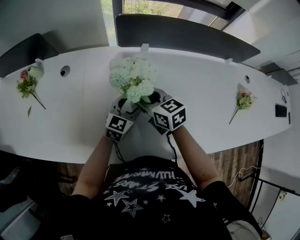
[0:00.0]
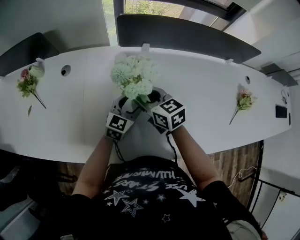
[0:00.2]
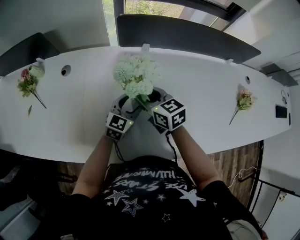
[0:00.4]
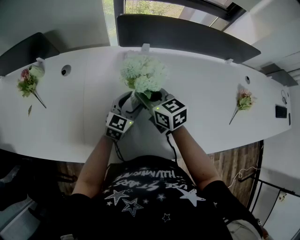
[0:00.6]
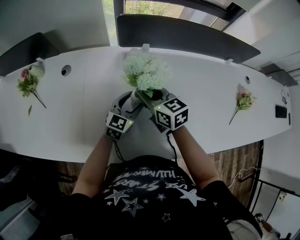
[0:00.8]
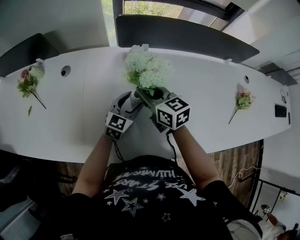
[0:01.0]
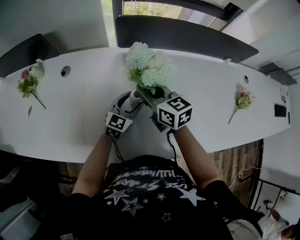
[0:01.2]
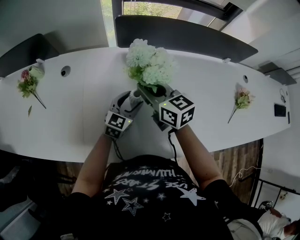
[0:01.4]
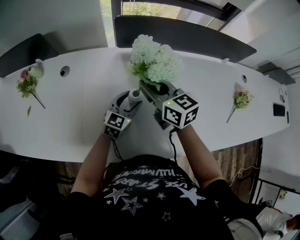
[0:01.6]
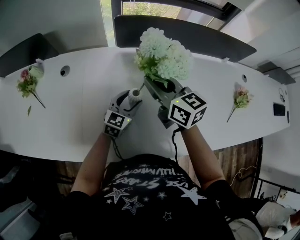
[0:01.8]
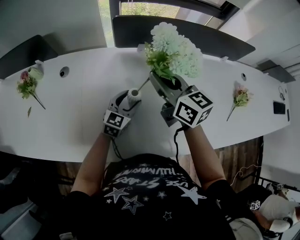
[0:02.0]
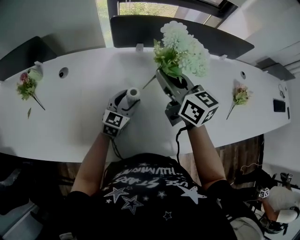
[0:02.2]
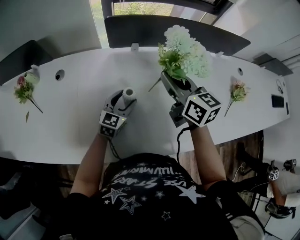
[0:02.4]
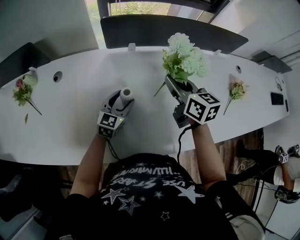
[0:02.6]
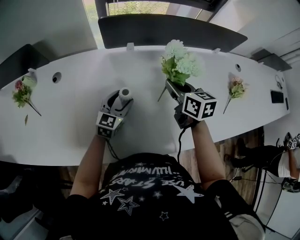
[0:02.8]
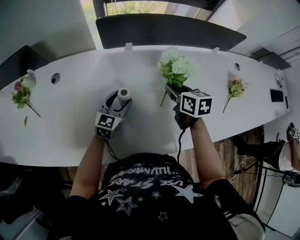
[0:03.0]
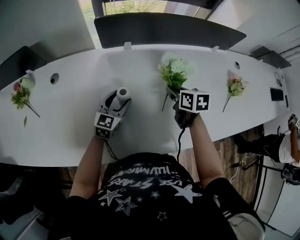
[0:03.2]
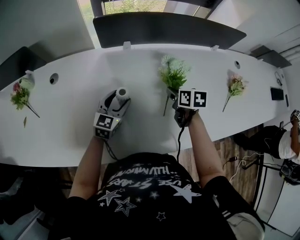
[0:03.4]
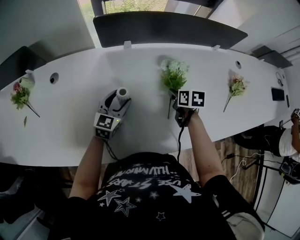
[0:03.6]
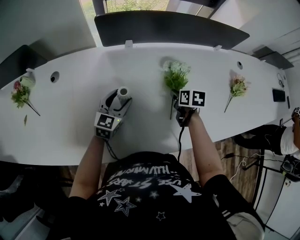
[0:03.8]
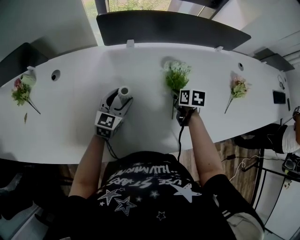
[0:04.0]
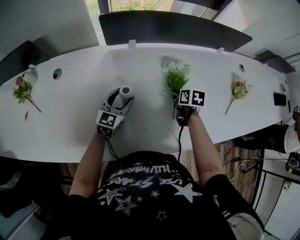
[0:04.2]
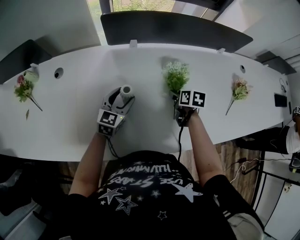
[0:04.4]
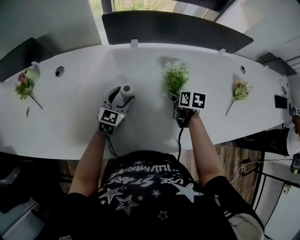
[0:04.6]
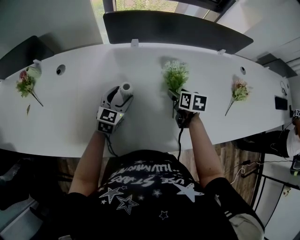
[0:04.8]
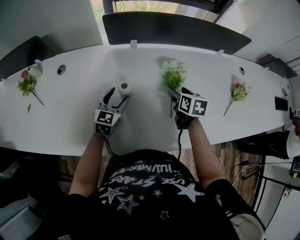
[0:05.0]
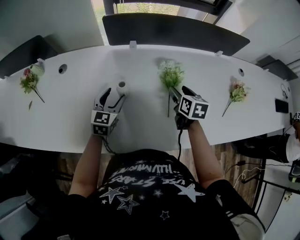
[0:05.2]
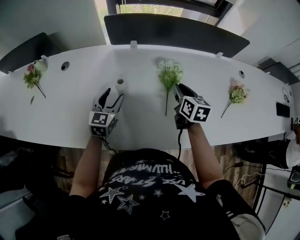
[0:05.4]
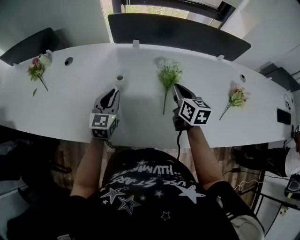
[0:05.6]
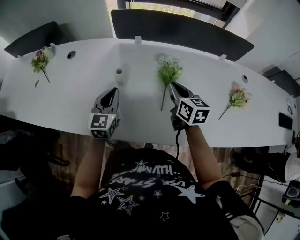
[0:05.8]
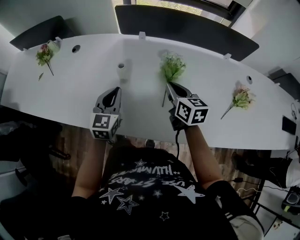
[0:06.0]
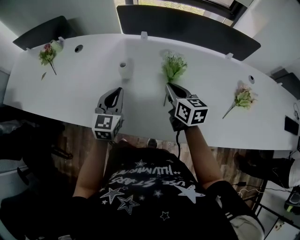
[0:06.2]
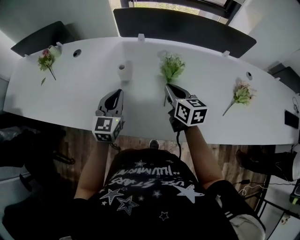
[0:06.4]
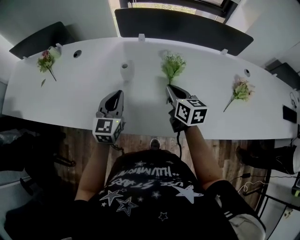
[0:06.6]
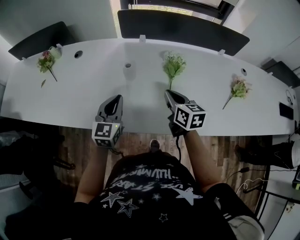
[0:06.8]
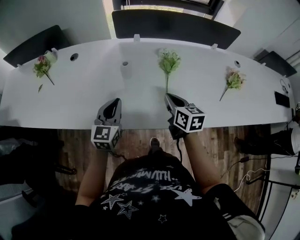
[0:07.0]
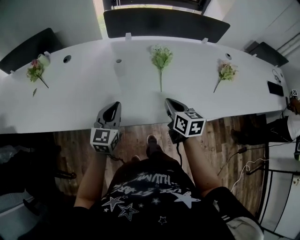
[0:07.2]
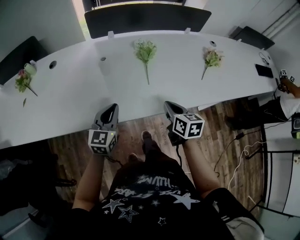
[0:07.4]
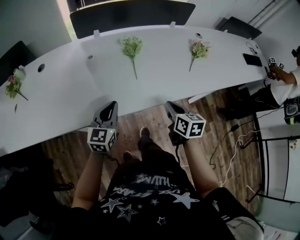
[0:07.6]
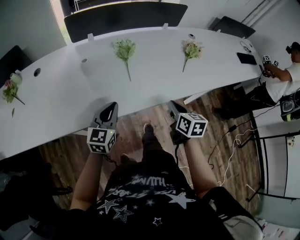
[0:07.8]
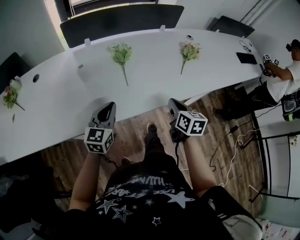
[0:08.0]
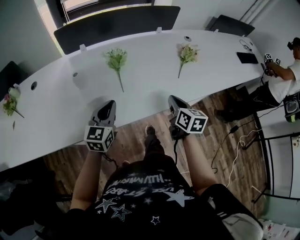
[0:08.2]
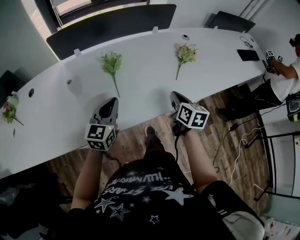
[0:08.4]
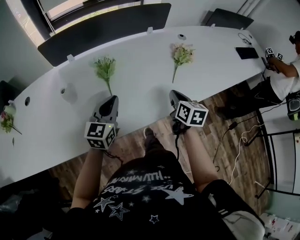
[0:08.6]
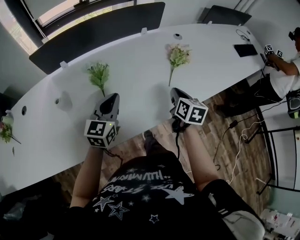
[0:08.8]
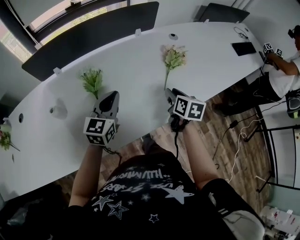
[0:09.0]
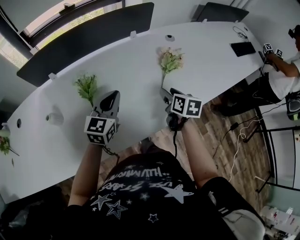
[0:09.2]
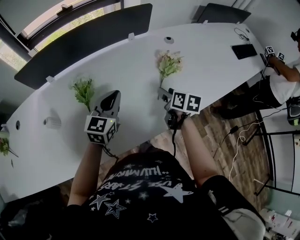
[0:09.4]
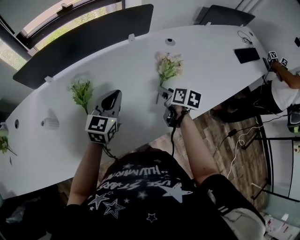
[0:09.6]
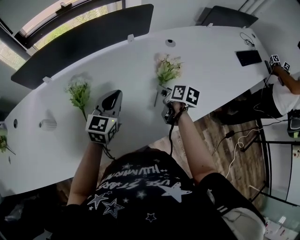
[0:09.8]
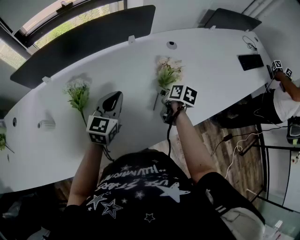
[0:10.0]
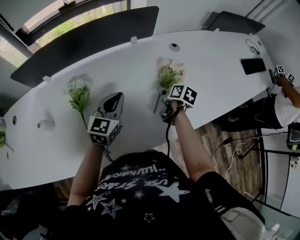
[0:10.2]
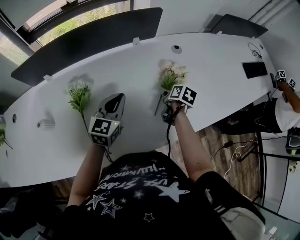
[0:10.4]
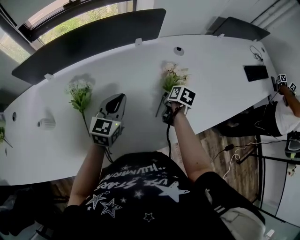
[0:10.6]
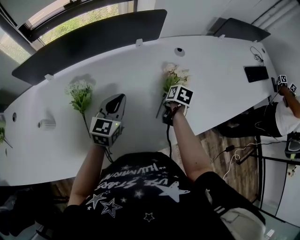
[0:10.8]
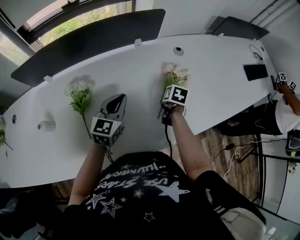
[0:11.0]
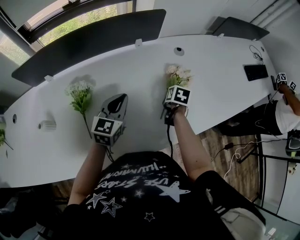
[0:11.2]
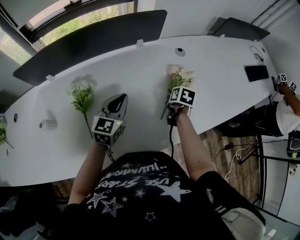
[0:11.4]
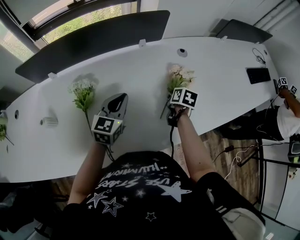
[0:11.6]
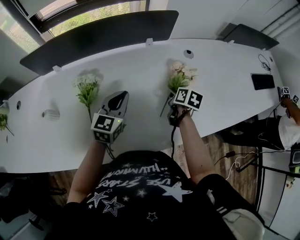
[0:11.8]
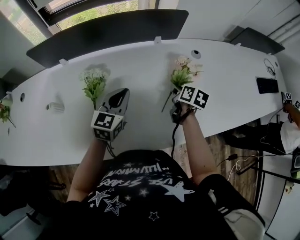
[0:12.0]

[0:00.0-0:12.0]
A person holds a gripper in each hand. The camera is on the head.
0.0 to 1.6 s: The right gripper heads upward, covering about 10 cm, and closes its fingers.
1.6 to 3.0 s: The right gripper goes some 20 cm to the right and downward, and changes its angle by some 30 degrees.
3.0 to 4.4 s: The right gripper goes roughly 15 cm downward and to the right, rotates about 20 degrees, and opens.
4.4 to 6.0 s: The left gripper travels backward and upward by approximately 15 cm, changes its angle by approximately 30 degrees, and closes. The right gripper goes about 15 cm upward and backward, tilts its fingers approximately 30 degrees upward, and closes up.
6.0 to 7.6 s: The left gripper changes place by roughly 15 cm, and rotates about 30 degrees. Meanwhile the right gripper ends up some 25 cm from where it was, and changes its angle by roughly 30 degrees.
7.6 to 9.0 s: The grippers both shift forward and to the right by some 30 cm. The right gripper opens up.
9.0 to 10.4 s: The right gripper shifts approximately 20 cm forward and downward, turns by roughly 20 degrees, and opens. The left gripper shifts some 15 cm forward and to the right.
10.4 to 12.0 s: The right gripper heads to the left and upward, covering approximately 5 cm, and closes.

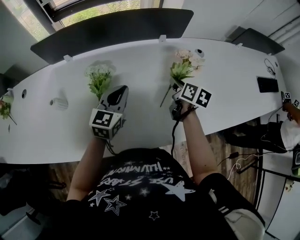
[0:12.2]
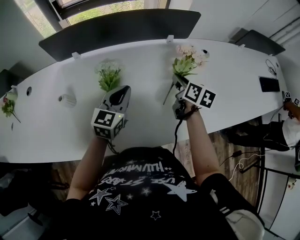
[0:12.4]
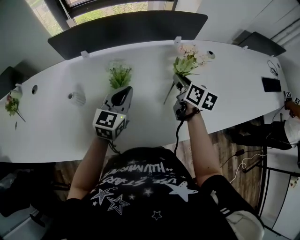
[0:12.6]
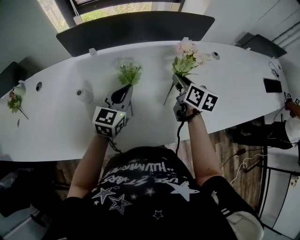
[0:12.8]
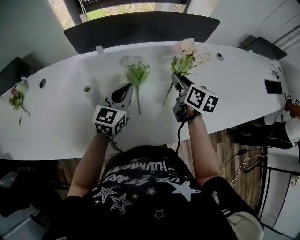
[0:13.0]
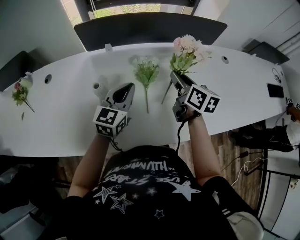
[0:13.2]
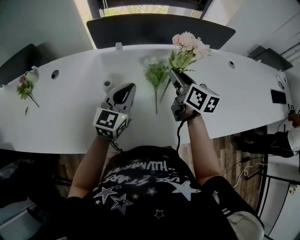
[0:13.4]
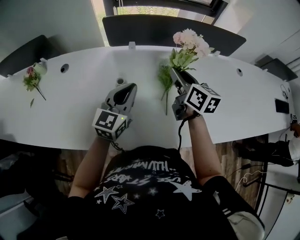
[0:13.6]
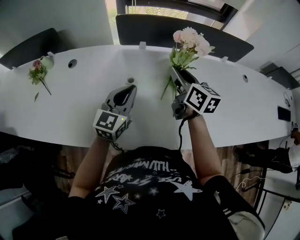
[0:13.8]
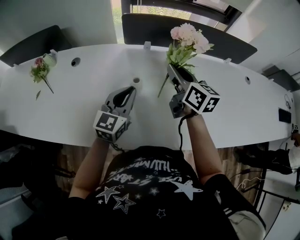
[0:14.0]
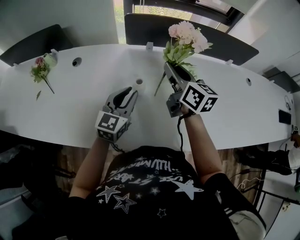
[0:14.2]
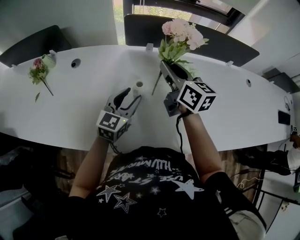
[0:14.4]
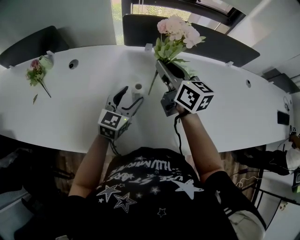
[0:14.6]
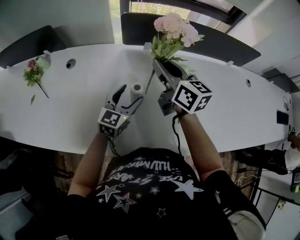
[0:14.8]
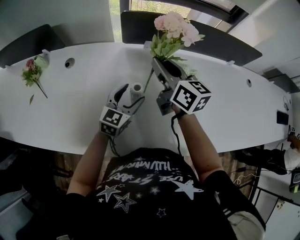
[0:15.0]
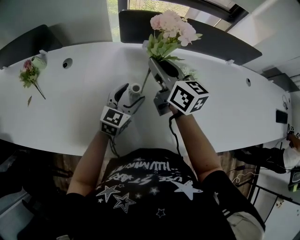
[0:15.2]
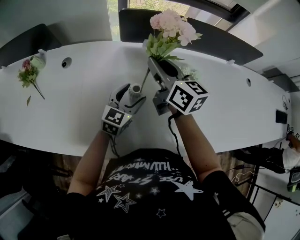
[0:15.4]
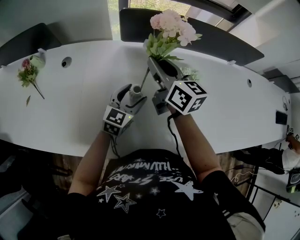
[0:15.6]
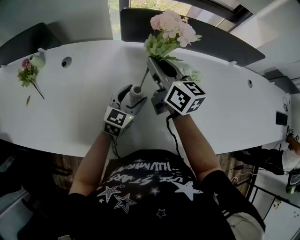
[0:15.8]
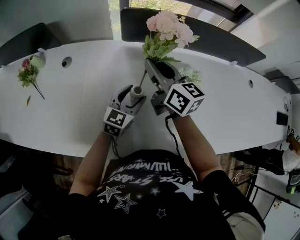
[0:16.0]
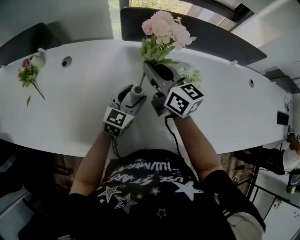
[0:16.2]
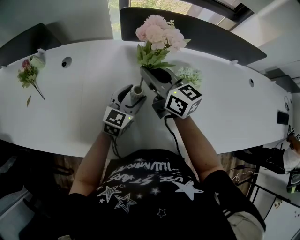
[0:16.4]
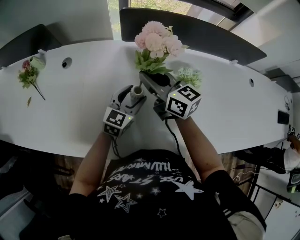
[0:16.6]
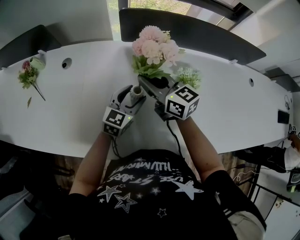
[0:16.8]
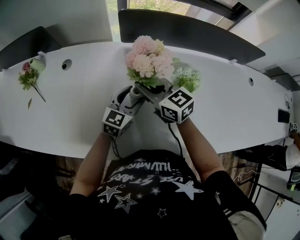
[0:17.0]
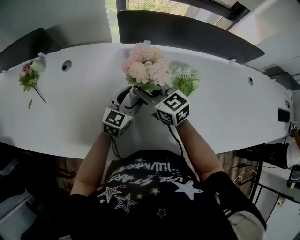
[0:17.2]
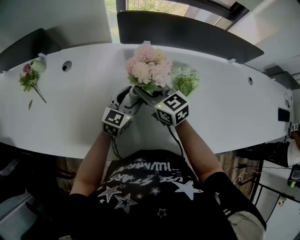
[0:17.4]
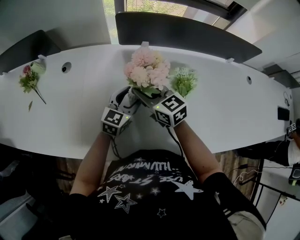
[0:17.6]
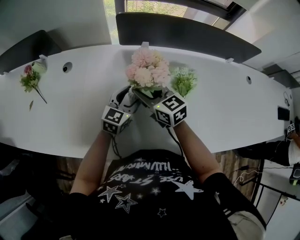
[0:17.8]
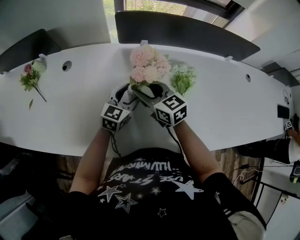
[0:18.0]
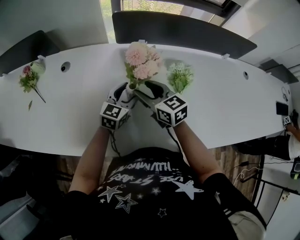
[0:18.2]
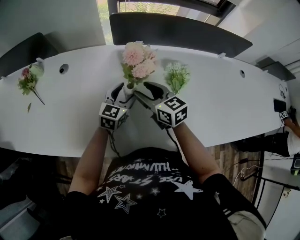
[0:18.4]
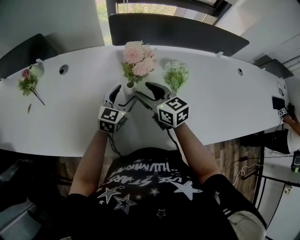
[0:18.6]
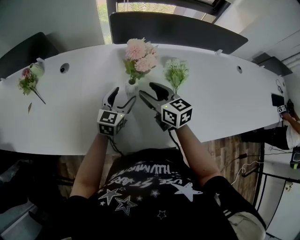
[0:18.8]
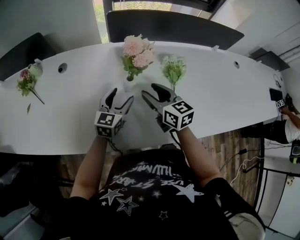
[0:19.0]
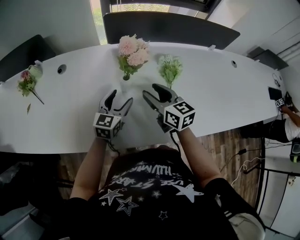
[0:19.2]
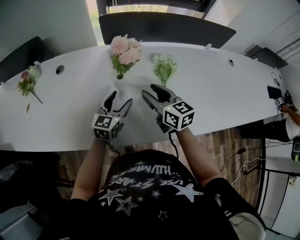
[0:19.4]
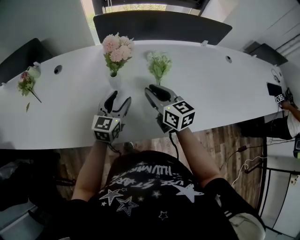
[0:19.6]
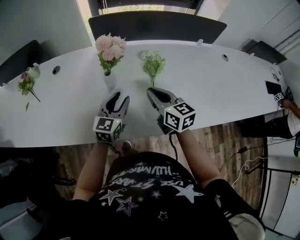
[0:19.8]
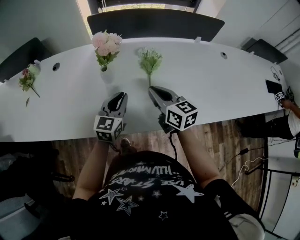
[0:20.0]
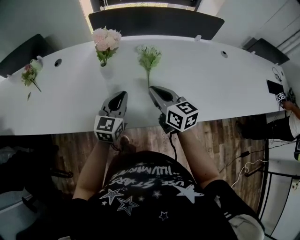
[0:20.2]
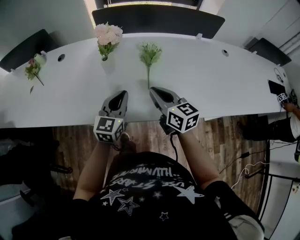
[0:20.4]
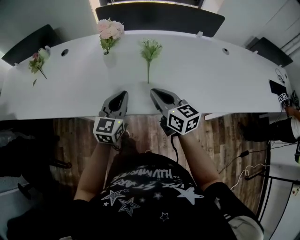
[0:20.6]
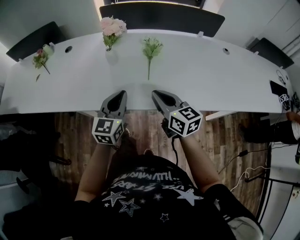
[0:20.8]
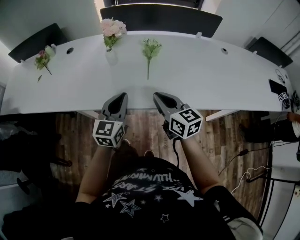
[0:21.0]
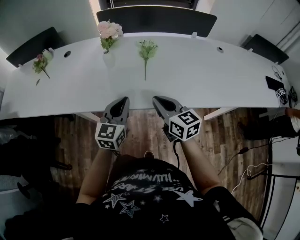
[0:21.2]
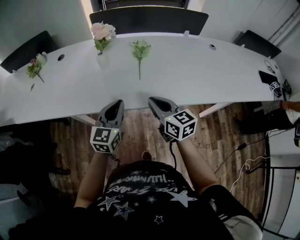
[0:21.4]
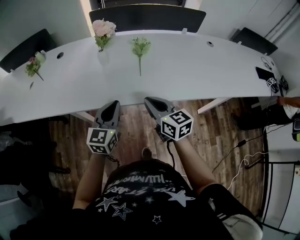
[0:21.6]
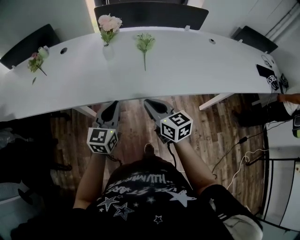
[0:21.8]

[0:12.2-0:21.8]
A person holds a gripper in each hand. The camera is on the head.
12.2 to 13.8 s: The grippers both shift to the left by some 35 cm. The right gripper turns by some 30 degrees.
13.8 to 15.4 s: The right gripper goes roughly 15 cm to the left and forward, while the left gripper moves downward and forward, about 15 cm, and opens up.
15.4 to 17.0 s: The right gripper shifts about 5 cm downward, and rotates roughly 30 degrees.
17.0 to 18.6 s: The right gripper is displaced backward by roughly 5 cm, and opens up.
18.6 to 20.2 s: The left gripper heads backward and to the right, covering approximately 20 cm, and closes up; the right gripper heads to the right and backward, covering about 20 cm, and closes its fingers.
20.2 to 21.8 s: Both grippers move backward, approximately 20 cm.

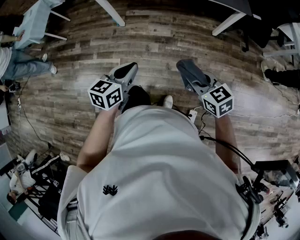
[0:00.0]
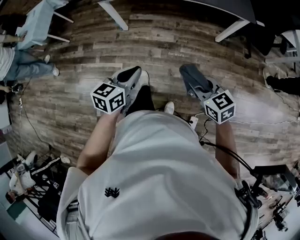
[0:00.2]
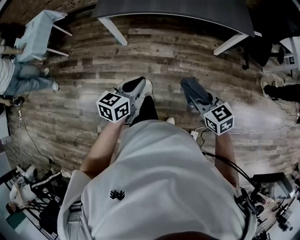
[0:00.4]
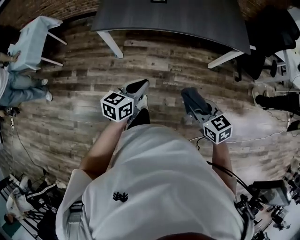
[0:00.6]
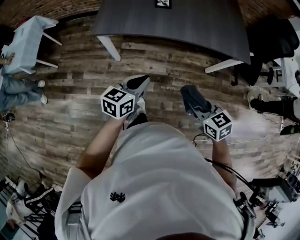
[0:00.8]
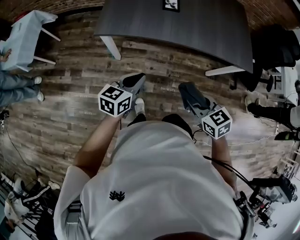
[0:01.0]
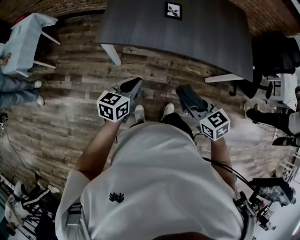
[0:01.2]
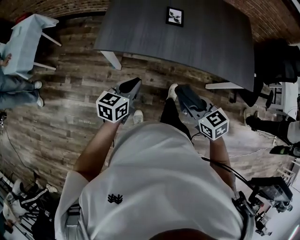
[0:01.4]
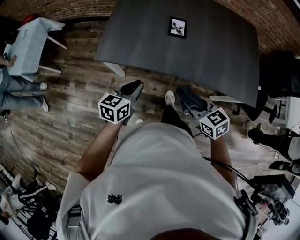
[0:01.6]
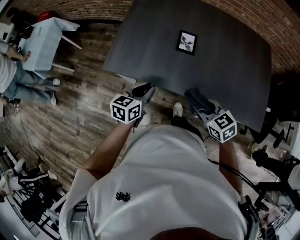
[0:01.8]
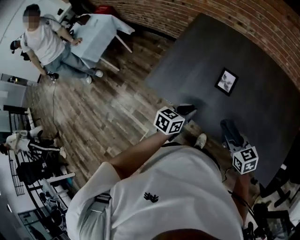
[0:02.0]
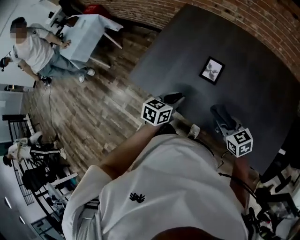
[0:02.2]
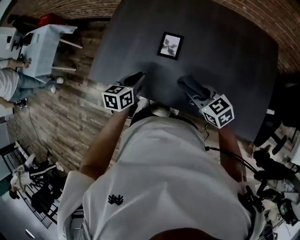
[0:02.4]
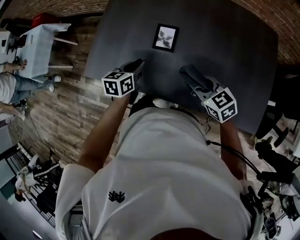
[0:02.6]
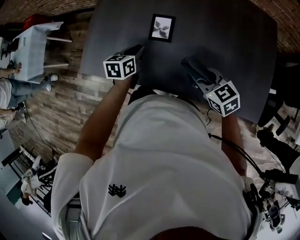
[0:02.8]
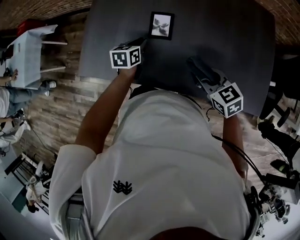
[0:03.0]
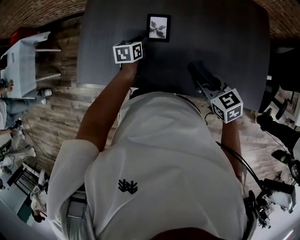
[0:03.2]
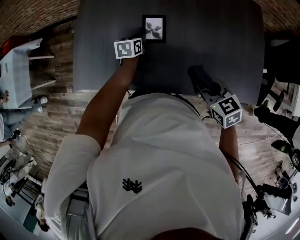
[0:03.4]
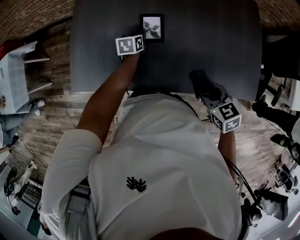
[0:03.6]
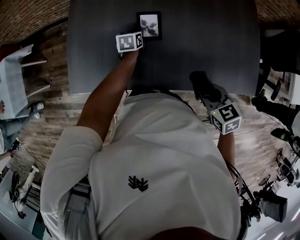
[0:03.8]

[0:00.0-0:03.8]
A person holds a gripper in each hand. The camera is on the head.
0.0 to 1.2 s: Both grippers move forward, about 35 cm.
1.2 to 2.6 s: The pair of grippers is taken forward and to the right, approximately 40 cm. The left gripper rotates approximately 20 degrees.
2.6 to 3.8 s: The left gripper moves downward and forward, about 20 cm, while the right gripper is displaced backward by some 5 cm, and swivels roughly 30 degrees.
